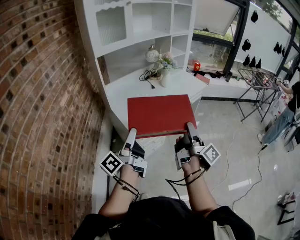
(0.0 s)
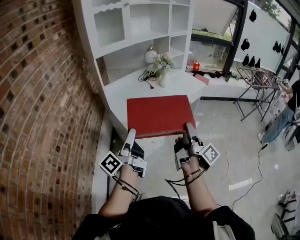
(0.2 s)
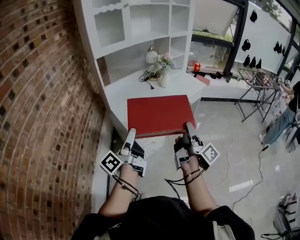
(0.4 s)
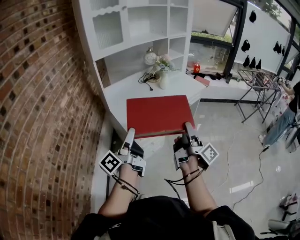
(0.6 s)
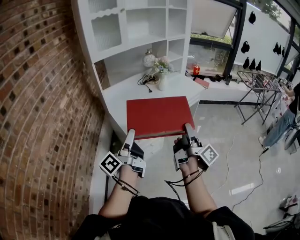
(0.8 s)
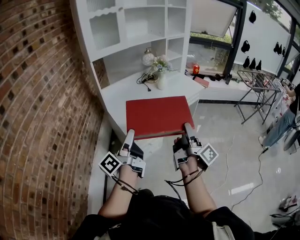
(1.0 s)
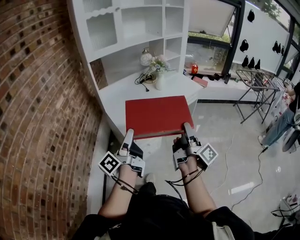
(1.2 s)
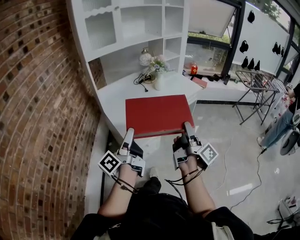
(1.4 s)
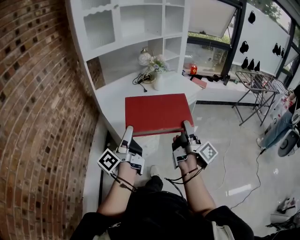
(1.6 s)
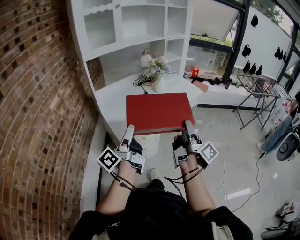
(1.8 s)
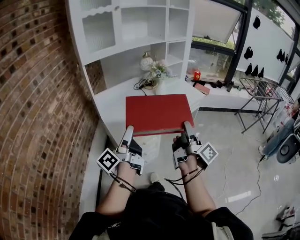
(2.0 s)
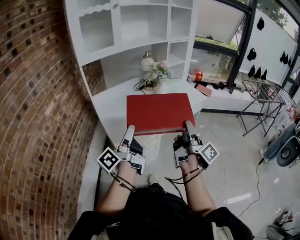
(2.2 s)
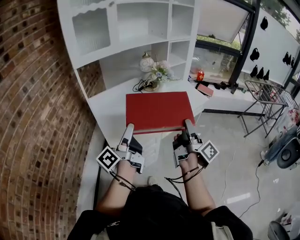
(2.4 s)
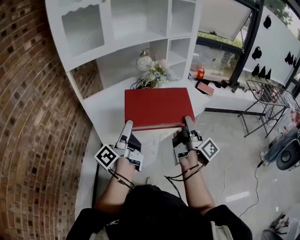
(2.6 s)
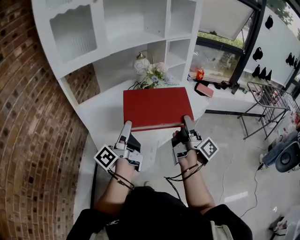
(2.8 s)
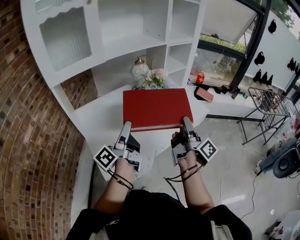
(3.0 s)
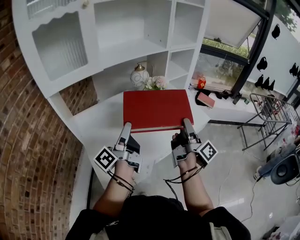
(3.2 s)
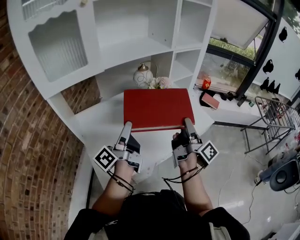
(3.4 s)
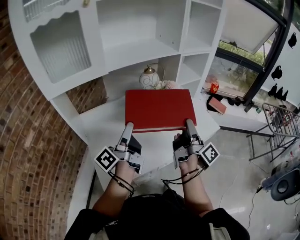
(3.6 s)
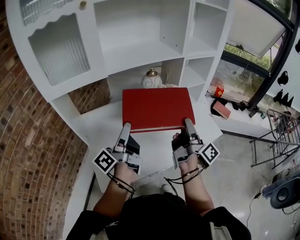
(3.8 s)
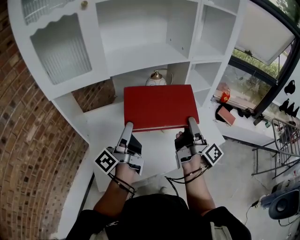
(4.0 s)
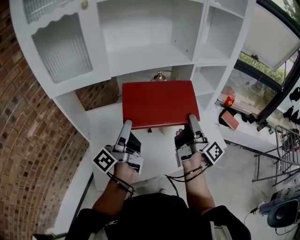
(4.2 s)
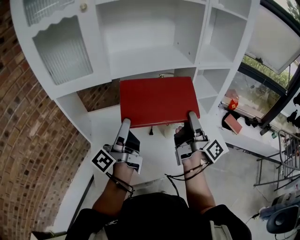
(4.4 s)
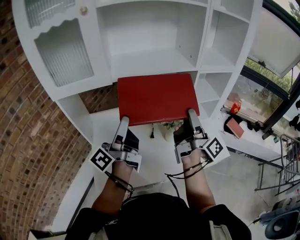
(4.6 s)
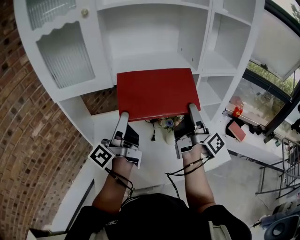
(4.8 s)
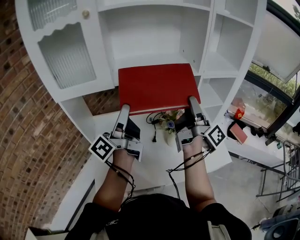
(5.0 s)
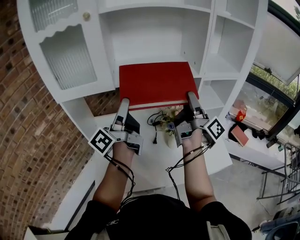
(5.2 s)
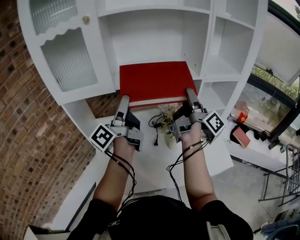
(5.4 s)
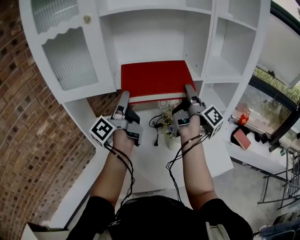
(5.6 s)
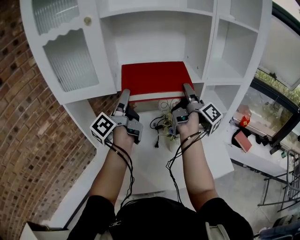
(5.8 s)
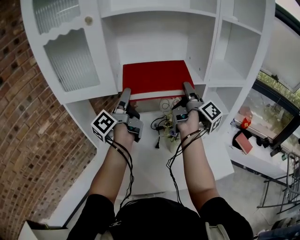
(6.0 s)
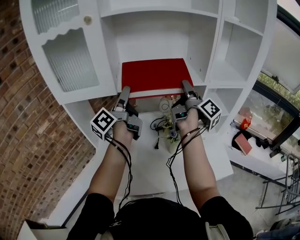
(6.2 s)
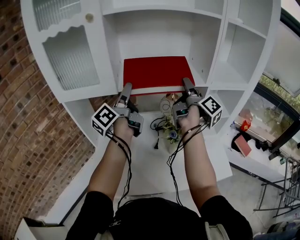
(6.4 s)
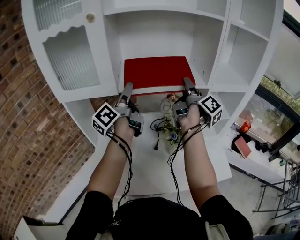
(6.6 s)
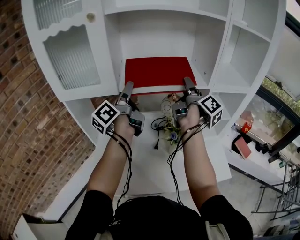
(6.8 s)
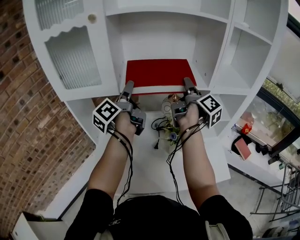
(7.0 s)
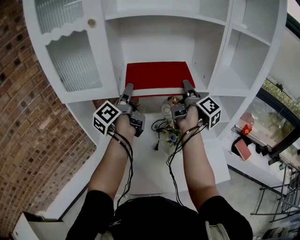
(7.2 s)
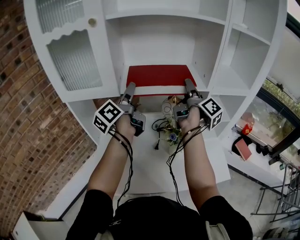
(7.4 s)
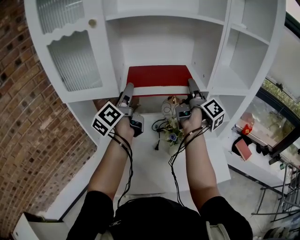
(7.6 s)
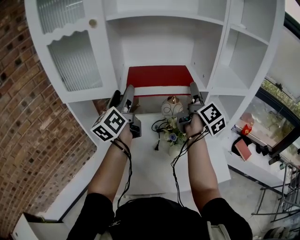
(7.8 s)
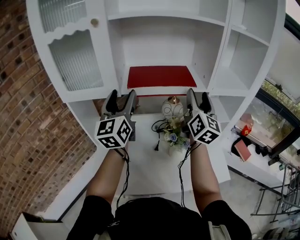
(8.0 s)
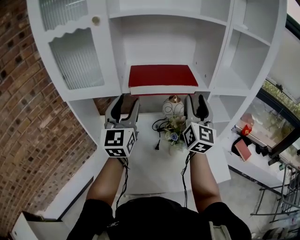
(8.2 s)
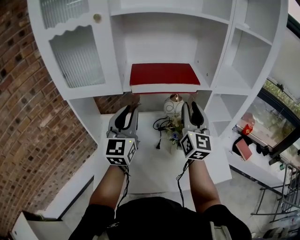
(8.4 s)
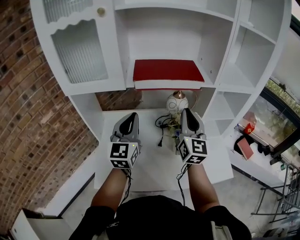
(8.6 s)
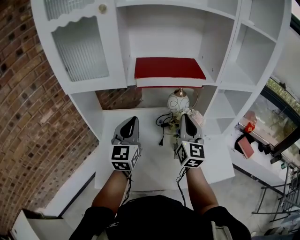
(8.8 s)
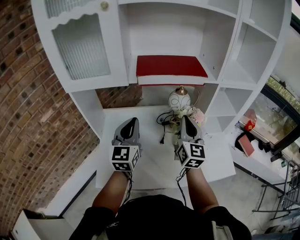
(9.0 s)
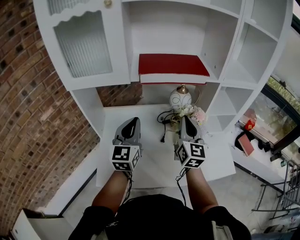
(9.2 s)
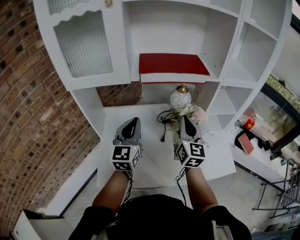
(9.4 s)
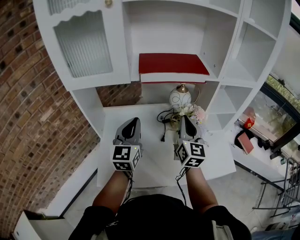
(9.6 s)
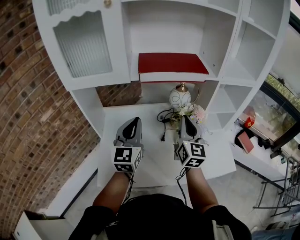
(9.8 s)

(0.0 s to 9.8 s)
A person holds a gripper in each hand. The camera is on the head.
0.0 s - 1.4 s: The two grippers go some 5 cm to the right.
1.4 s - 2.8 s: Both grippers move forward, approximately 30 cm.
2.8 s - 4.2 s: Both grippers travel together forward, some 25 cm. The right gripper turns by approximately 20 degrees.
4.2 s - 5.6 s: The grippers both shift forward and upward by roughly 15 cm.
5.6 s - 7.0 s: Both grippers move forward, about 10 cm.
7.0 s - 8.4 s: Both grippers move backward, about 10 cm. The left gripper rolls clockwise, seen from behind, by about 70 degrees, and closes up, while the right gripper rotates around the line of its fingers by approximately 70 degrees, counterclockwise from behind, and closes.
8.4 s - 9.8 s: The grippers both shift downward by roughly 10 cm.

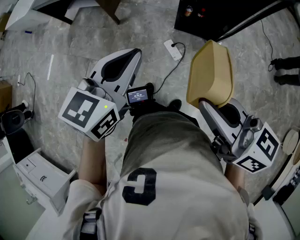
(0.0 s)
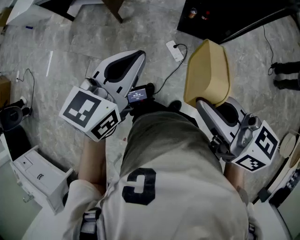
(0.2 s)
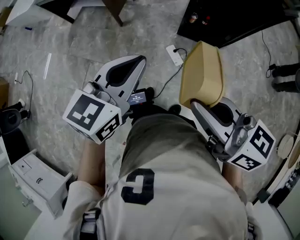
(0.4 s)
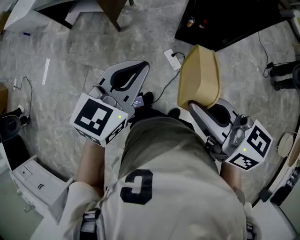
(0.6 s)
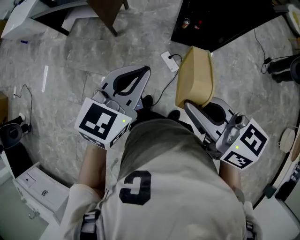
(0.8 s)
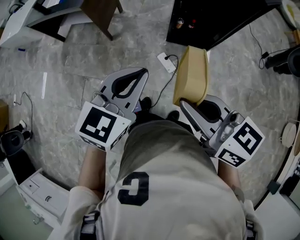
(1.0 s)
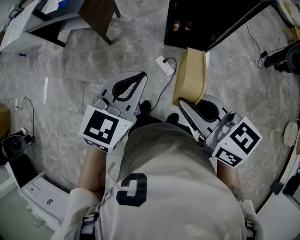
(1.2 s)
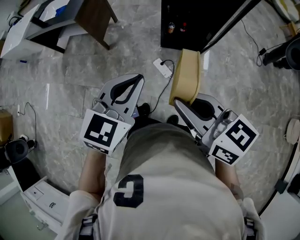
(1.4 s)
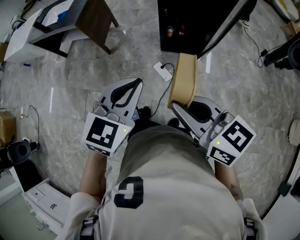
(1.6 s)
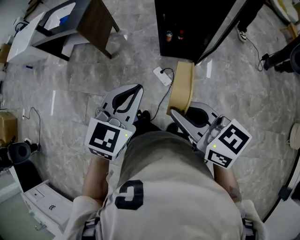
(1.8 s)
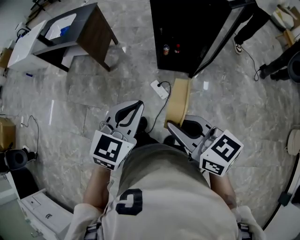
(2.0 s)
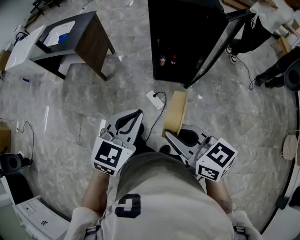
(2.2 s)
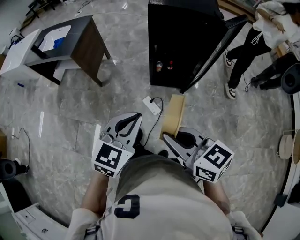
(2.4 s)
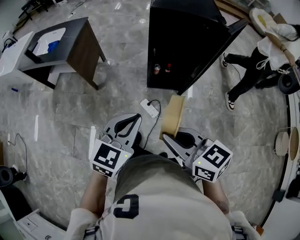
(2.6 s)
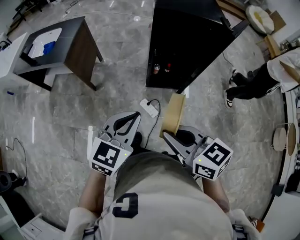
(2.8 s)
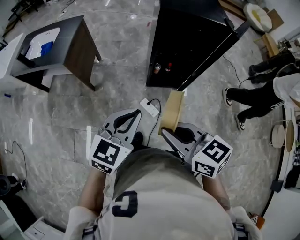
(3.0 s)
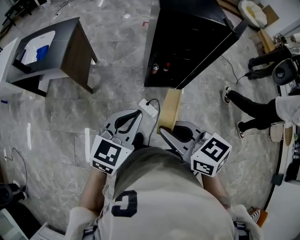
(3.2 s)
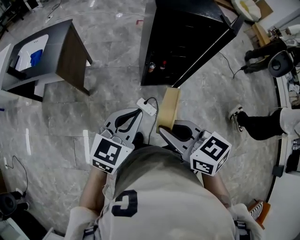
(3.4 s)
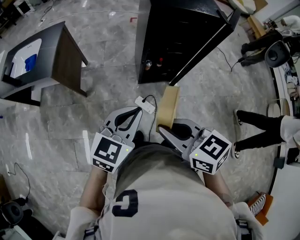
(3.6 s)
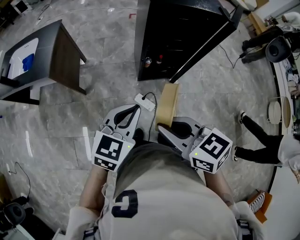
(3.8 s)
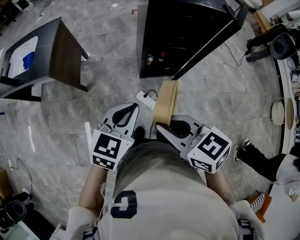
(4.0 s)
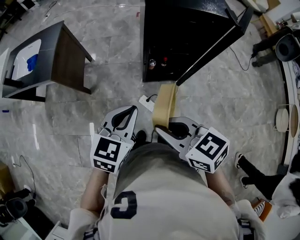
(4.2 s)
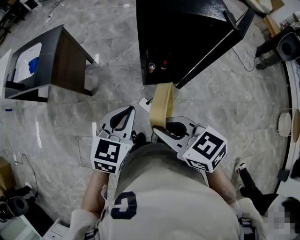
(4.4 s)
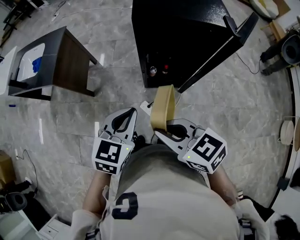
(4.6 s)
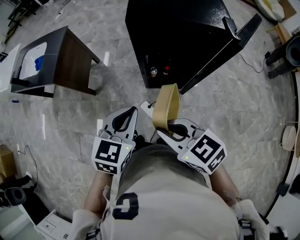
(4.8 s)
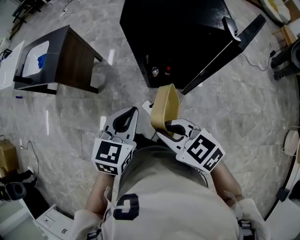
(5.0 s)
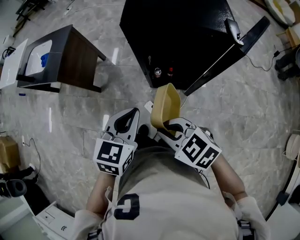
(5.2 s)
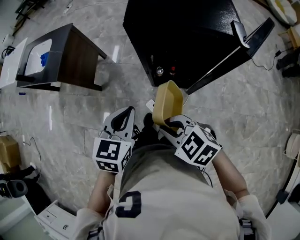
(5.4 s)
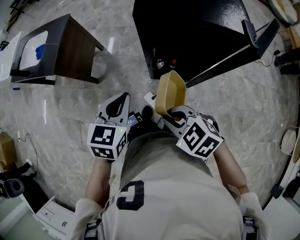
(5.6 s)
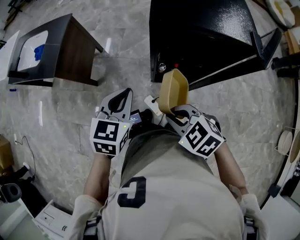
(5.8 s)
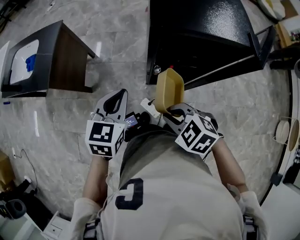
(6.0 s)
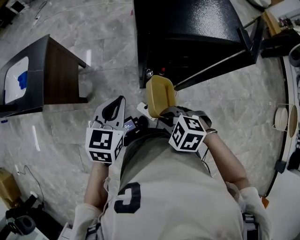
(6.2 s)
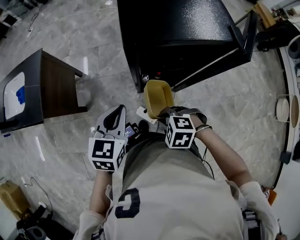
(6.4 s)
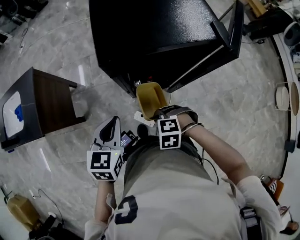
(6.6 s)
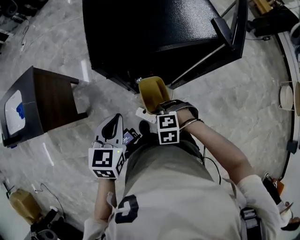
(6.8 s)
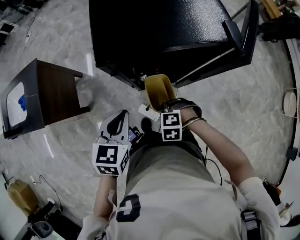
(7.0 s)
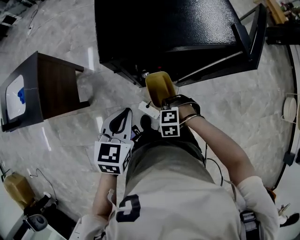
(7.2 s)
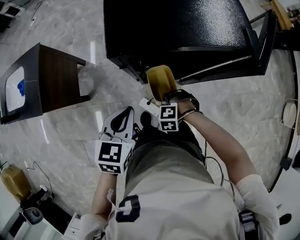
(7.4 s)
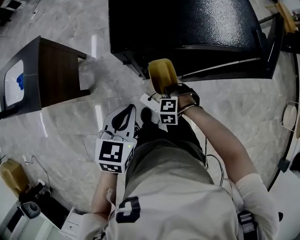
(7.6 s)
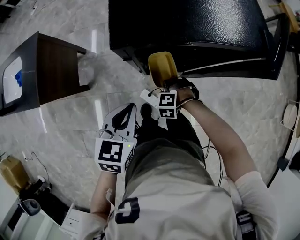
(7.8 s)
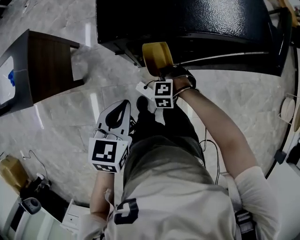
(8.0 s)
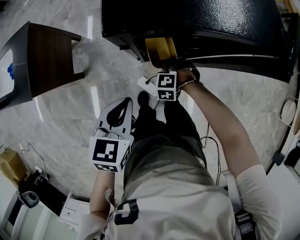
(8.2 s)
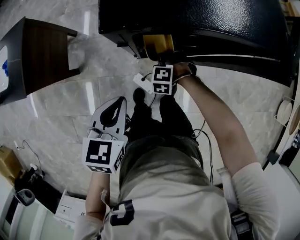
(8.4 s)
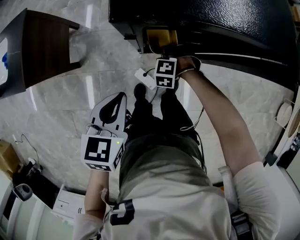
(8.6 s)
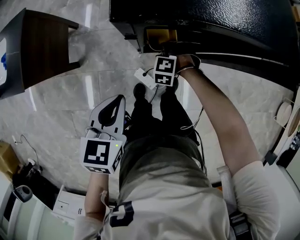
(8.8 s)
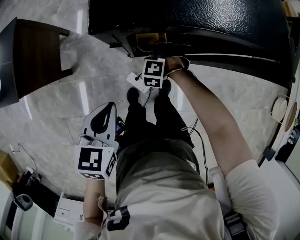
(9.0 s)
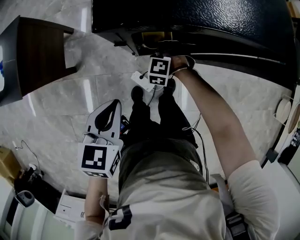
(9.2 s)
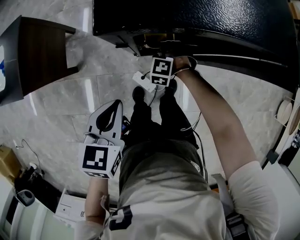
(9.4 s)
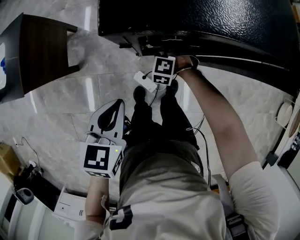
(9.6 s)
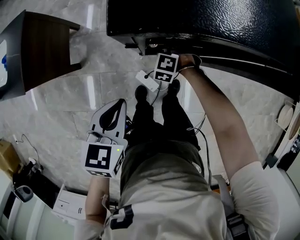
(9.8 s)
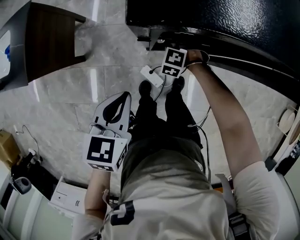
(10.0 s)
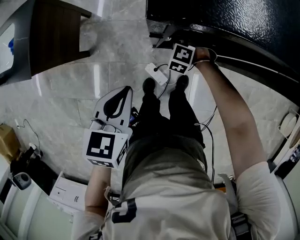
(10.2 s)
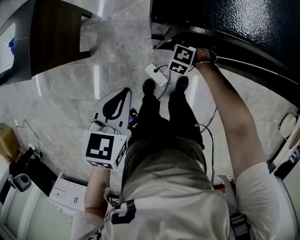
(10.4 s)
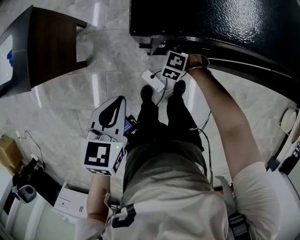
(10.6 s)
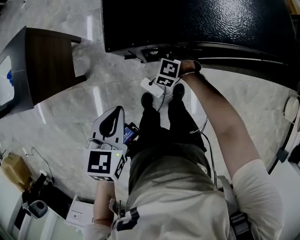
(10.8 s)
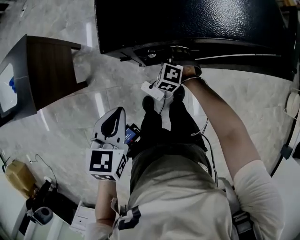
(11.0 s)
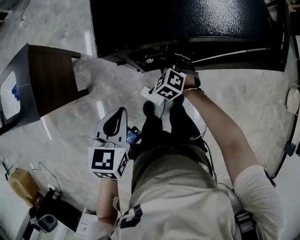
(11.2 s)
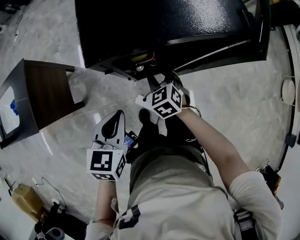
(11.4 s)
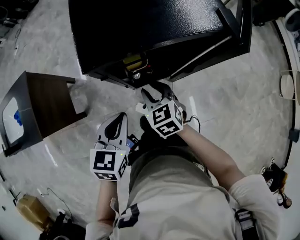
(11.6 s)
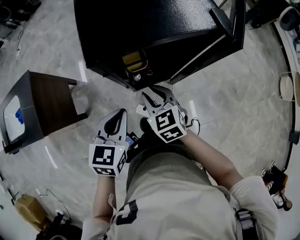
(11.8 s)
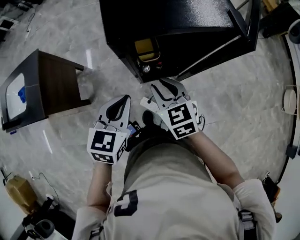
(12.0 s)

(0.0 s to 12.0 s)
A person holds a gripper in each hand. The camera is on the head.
0.0 s - 1.6 s: The right gripper reaches approximately 10 cm to the left, then returns. Meanwhile the left gripper moves to the right, approximately 5 cm, and swivels approximately 20 degrees.
1.6 s - 3.0 s: The left gripper heads forward, covering some 15 cm, while the right gripper travels forward and to the left by approximately 15 cm.
3.0 s - 4.4 s: Both grippers travel together forward, about 15 cm.
4.4 s - 6.0 s: The left gripper moves forward, roughly 15 cm. The right gripper goes approximately 15 cm forward, downward and to the right, and changes its angle by about 40 degrees.
6.0 s - 7.6 s: The right gripper is displaced downward by approximately 25 cm, and turns by about 40 degrees, while the left gripper changes place by about 10 cm.
7.6 s - 9.0 s: The right gripper ends up about 15 cm from where it was; the left gripper moves roughly 5 cm.
9.0 s - 10.4 s: The right gripper moves approximately 5 cm.
10.4 s - 12.0 s: The left gripper goes about 10 cm upward and to the right, and changes its angle by about 20 degrees. The right gripper travels upward and backward by roughly 30 cm, and rotates around the line of its fingers by about 70 degrees, clockwise from behind.

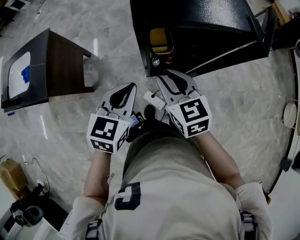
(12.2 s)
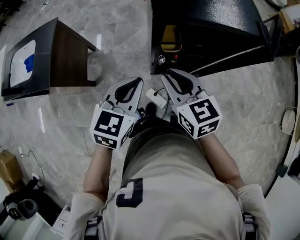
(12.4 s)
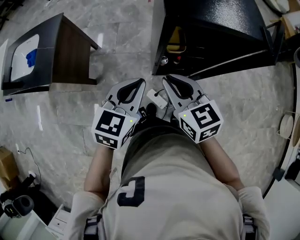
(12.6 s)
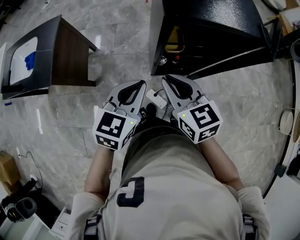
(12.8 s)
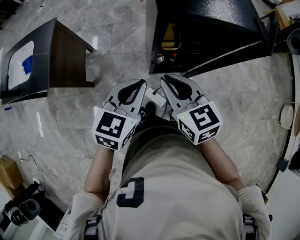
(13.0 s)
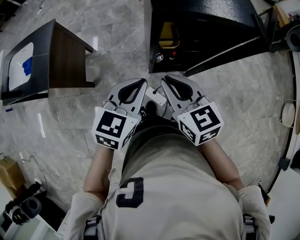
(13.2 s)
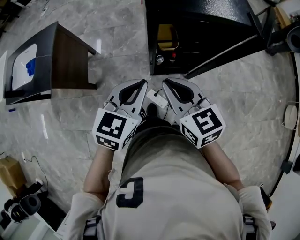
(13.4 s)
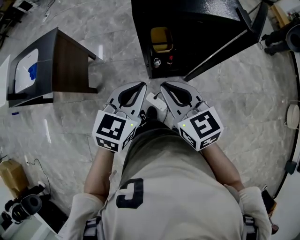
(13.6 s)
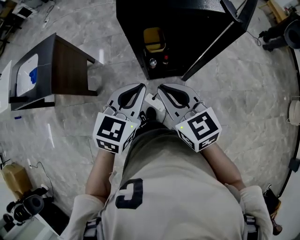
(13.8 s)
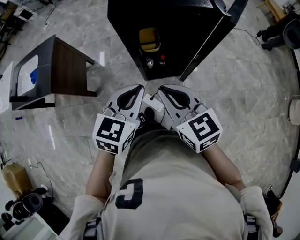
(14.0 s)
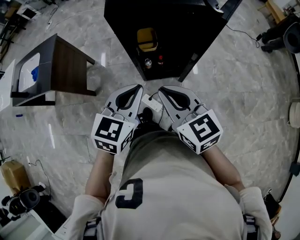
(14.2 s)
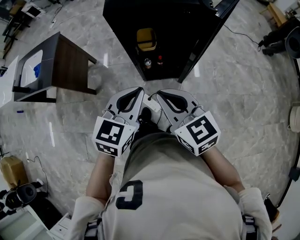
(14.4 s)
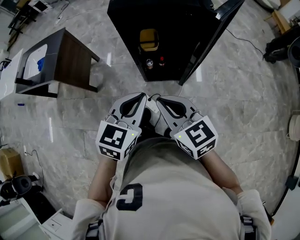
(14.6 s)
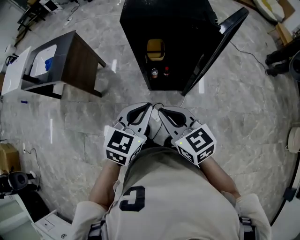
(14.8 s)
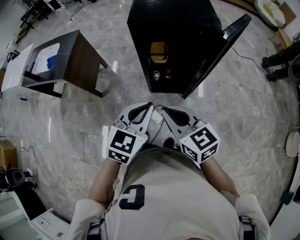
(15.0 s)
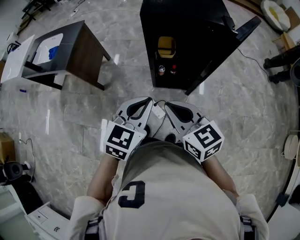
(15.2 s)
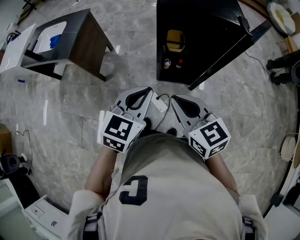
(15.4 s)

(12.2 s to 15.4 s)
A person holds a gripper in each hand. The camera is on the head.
12.2 s - 13.8 s: The right gripper heads backward and upward, covering about 15 cm; the left gripper moves backward and to the right, approximately 10 cm.
13.8 s - 15.4 s: The grippers both shift backward by about 10 cm.
